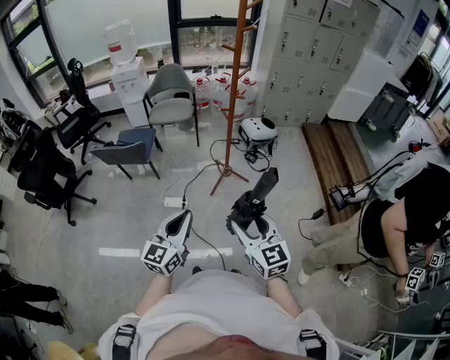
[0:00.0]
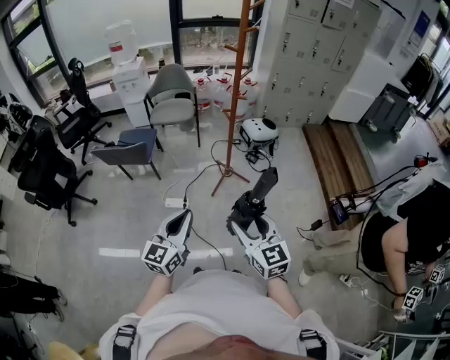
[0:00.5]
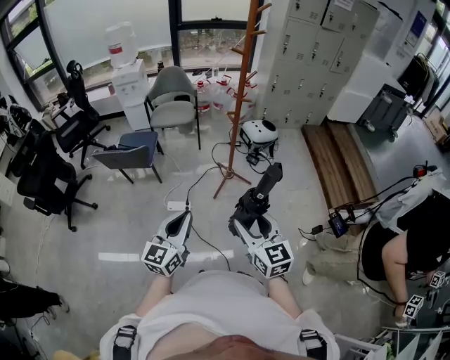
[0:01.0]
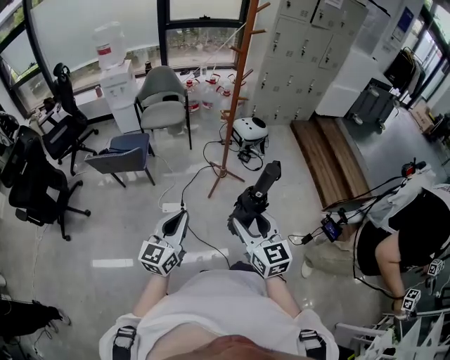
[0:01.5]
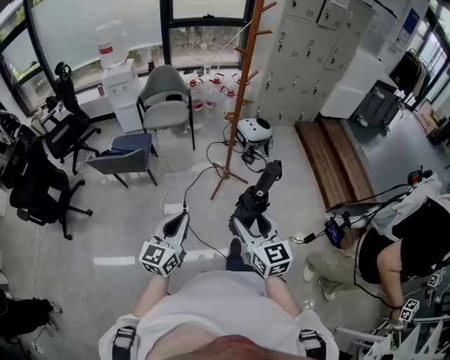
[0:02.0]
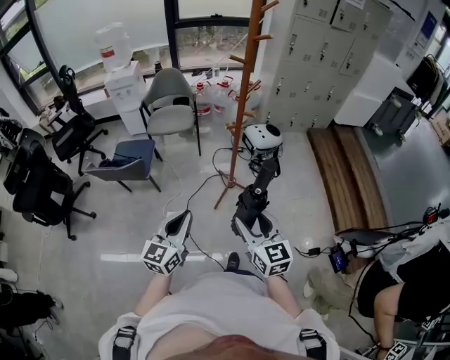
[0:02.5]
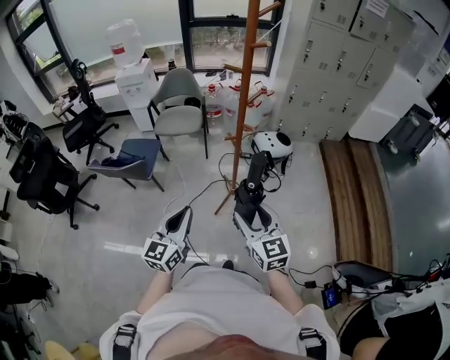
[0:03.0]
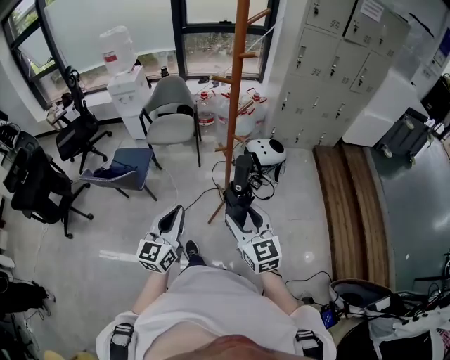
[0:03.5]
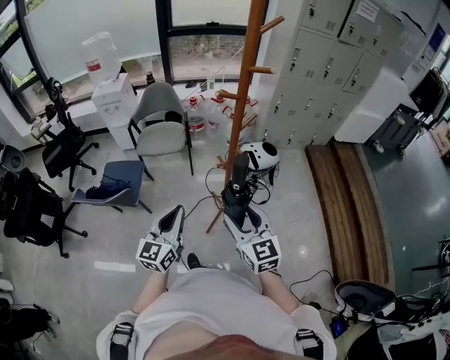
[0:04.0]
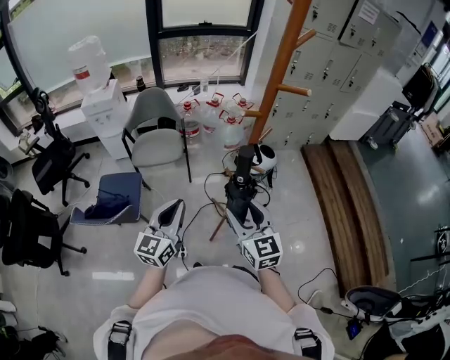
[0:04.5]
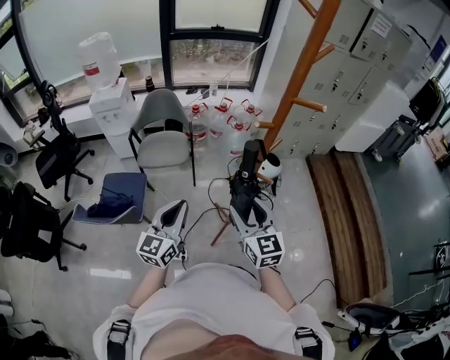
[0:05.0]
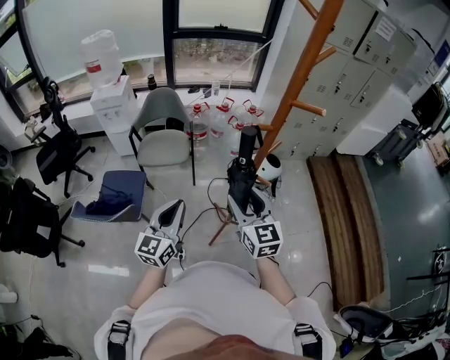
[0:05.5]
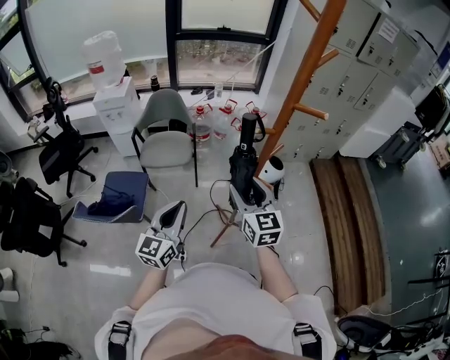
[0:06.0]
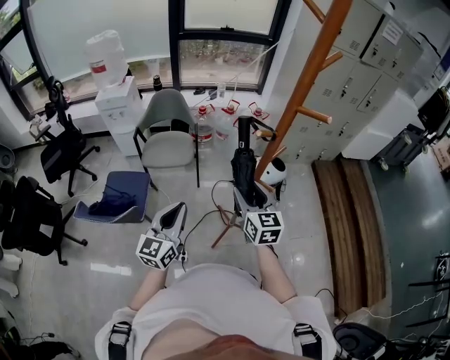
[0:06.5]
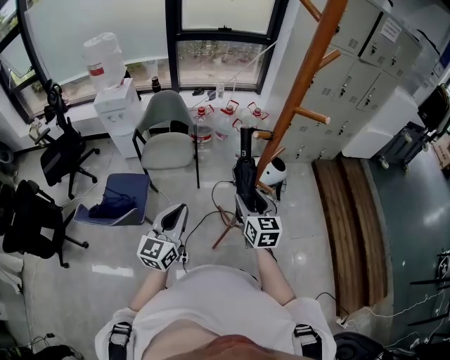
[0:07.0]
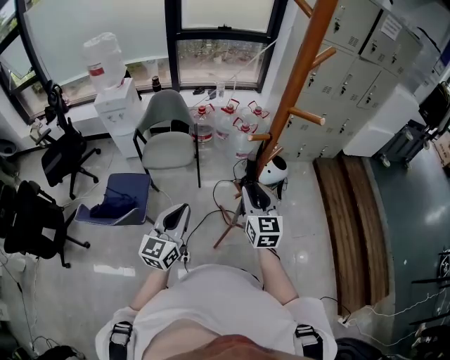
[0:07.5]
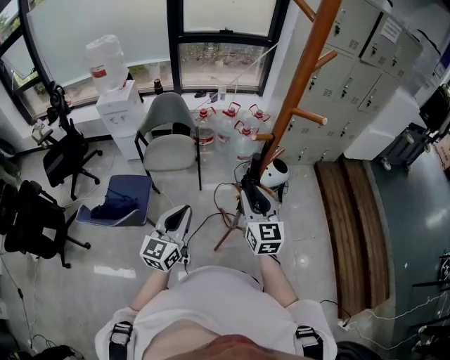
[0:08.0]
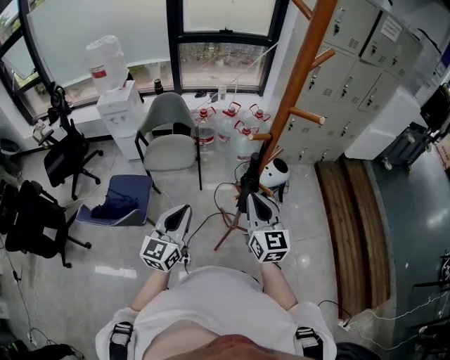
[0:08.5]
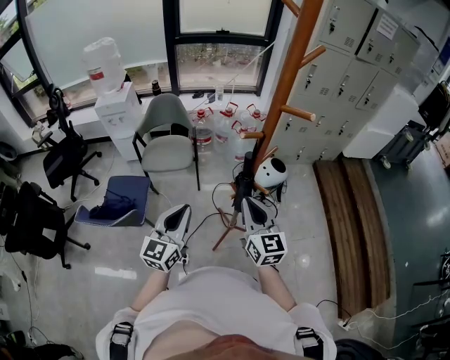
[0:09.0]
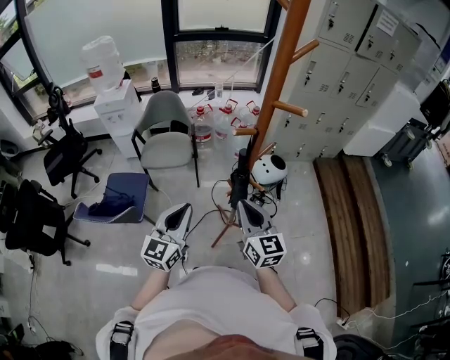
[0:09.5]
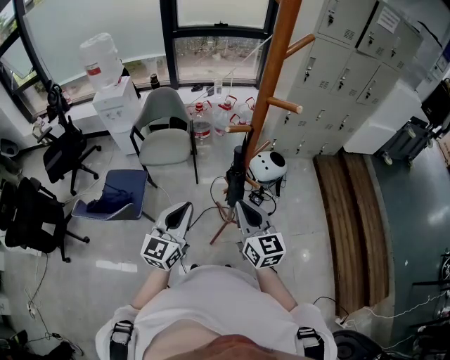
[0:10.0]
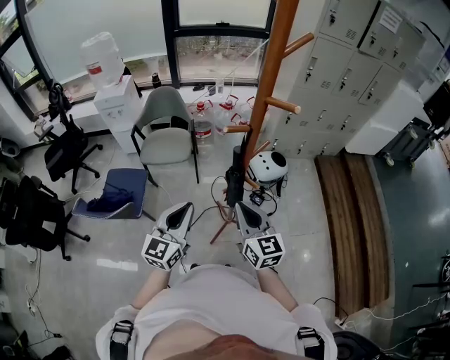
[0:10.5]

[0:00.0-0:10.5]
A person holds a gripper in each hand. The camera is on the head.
0:00.0 to 0:02.0: The grippers both shift to the left by approximately 10 cm.
0:02.0 to 0:04.0: Both grippers travel together forward, some 35 cm.
0:04.0 to 0:06.5: The left gripper travels forward and to the left by approximately 15 cm. Meanwhile the right gripper shifts some 20 cm forward.
0:06.5 to 0:08.5: The right gripper changes place by about 5 cm, and closes.
0:08.5 to 0:10.5: The left gripper is displaced to the right by about 5 cm.

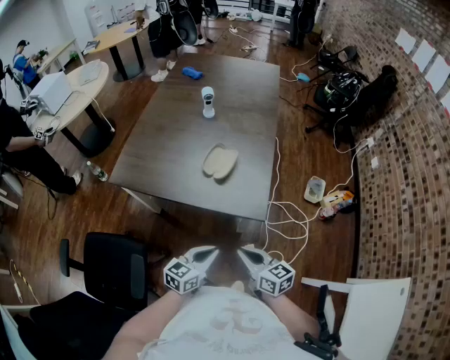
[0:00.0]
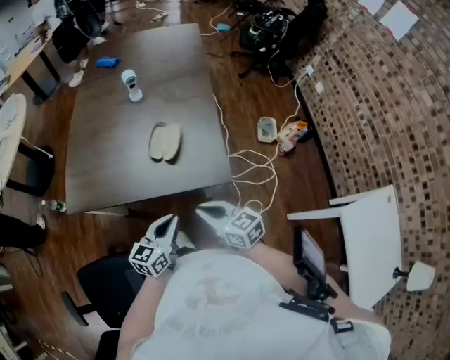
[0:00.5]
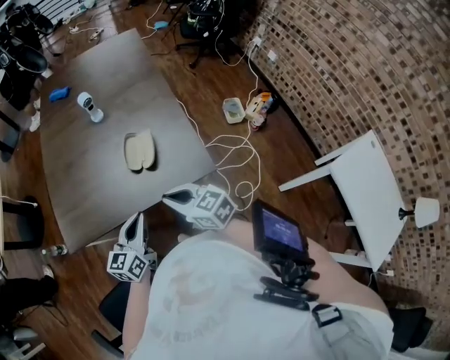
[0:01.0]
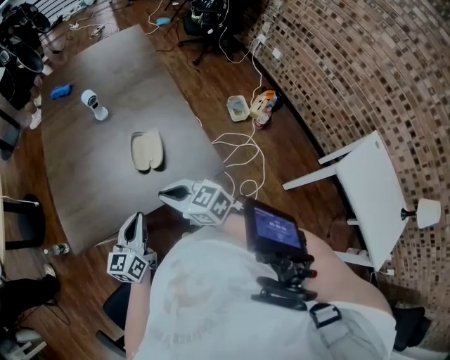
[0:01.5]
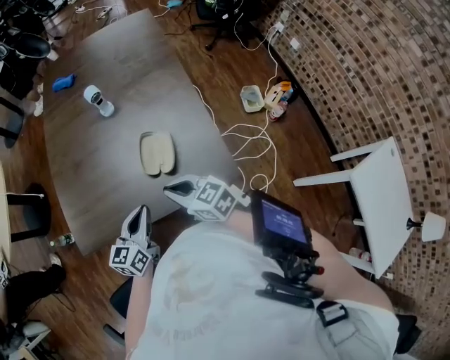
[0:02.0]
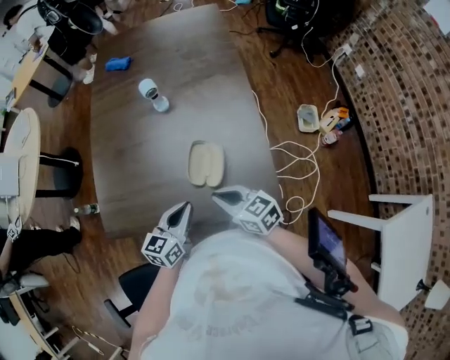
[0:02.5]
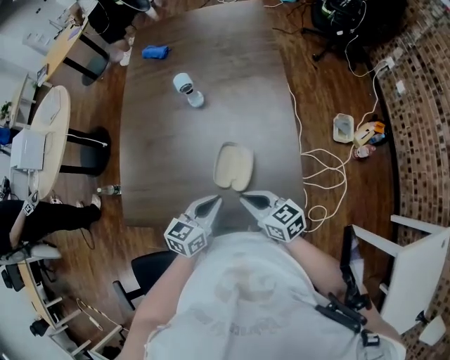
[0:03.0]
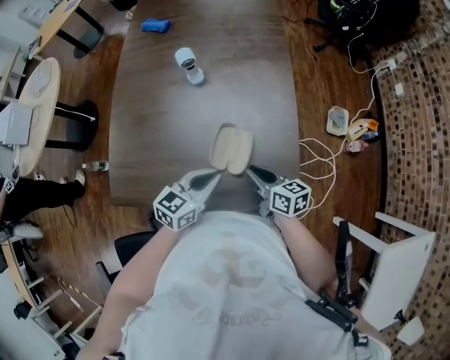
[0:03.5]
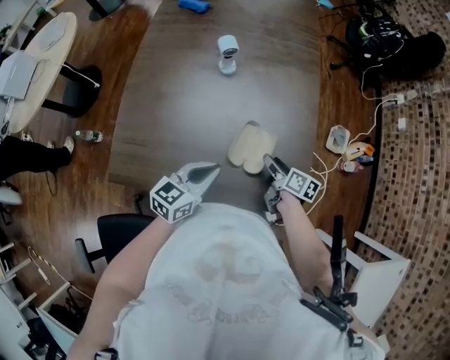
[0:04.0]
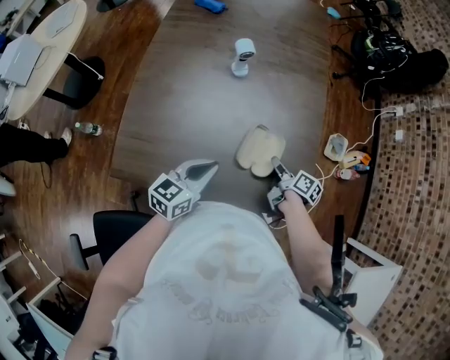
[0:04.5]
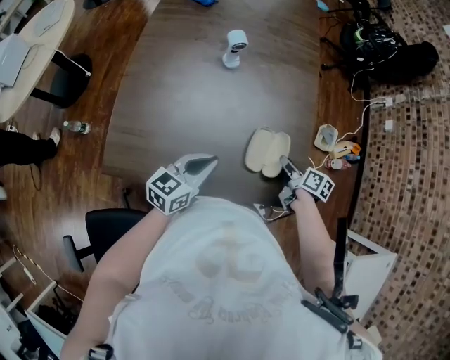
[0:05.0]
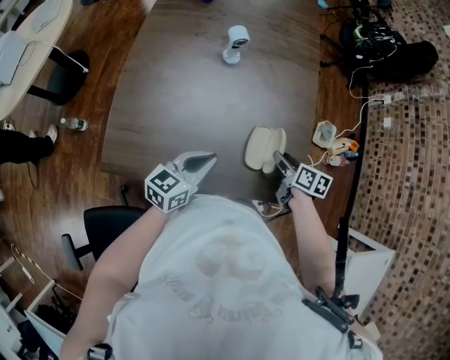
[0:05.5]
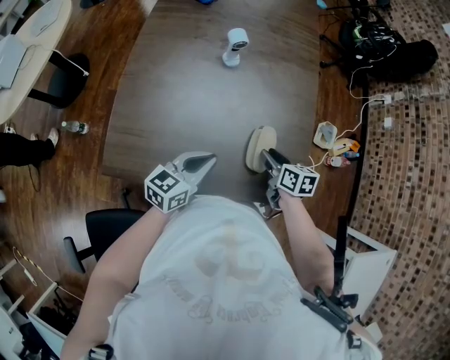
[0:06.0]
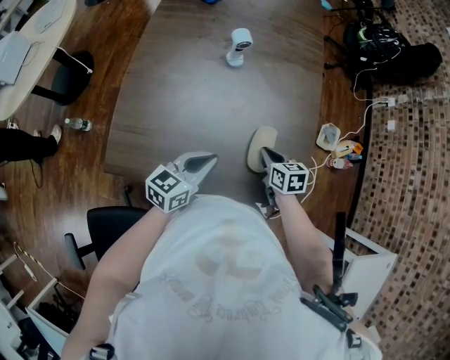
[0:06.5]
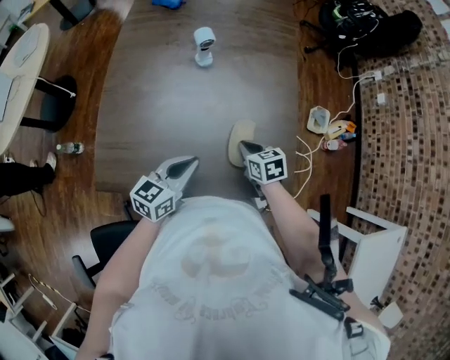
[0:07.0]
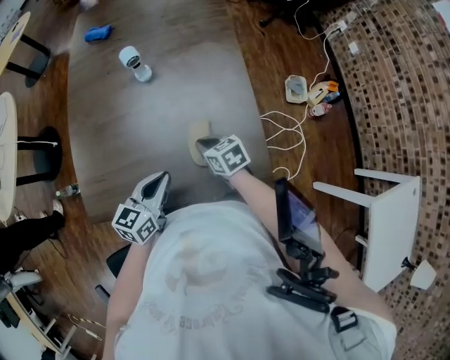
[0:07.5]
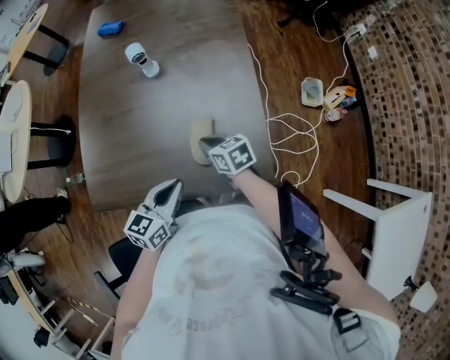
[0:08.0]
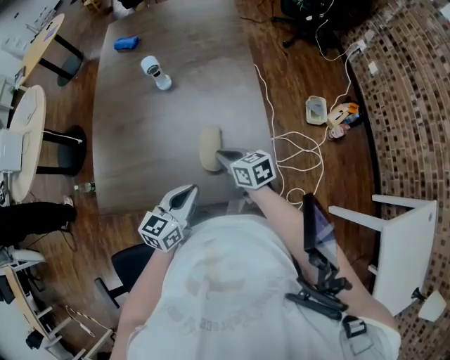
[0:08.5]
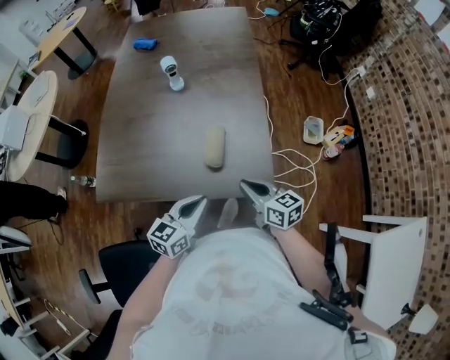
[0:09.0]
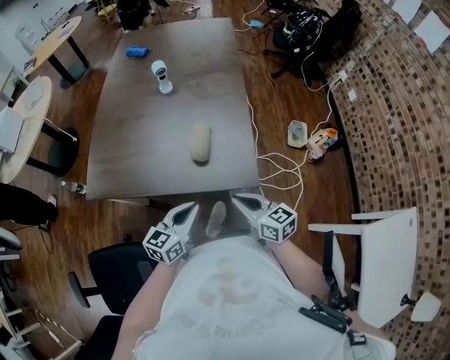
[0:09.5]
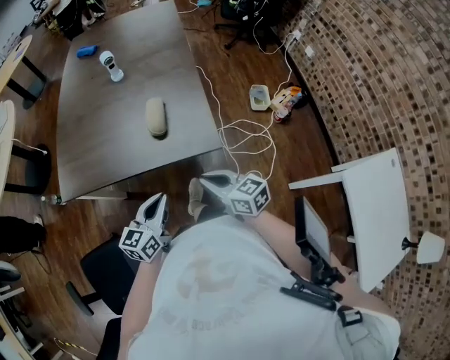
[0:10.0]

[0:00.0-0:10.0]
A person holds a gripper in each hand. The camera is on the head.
0:00.0 to 0:02.0: Both grippers move forward and to the left, some 25 cm.
0:02.0 to 0:04.0: The left gripper moves forward, approximately 10 cm. Meanwhile the right gripper travels downward, forward and to the right by some 20 cm, twists approximately 40 degrees clockwise, seen from behind, and opens.
0:04.0 to 0:06.0: The right gripper moves roughly 5 cm, swivels about 20 degrees, and closes up.
0:06.0 to 0:08.0: The right gripper closes up; the left gripper heads to the right and backward, covering some 10 cm.
0:08.0 to 0:10.0: The two grippers go approximately 25 cm backward.

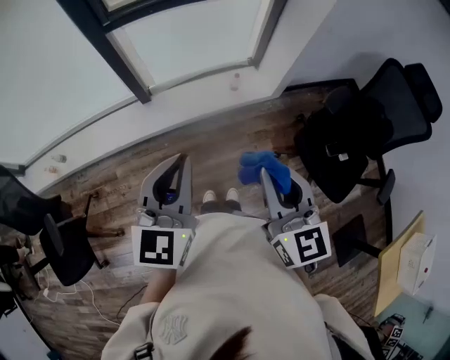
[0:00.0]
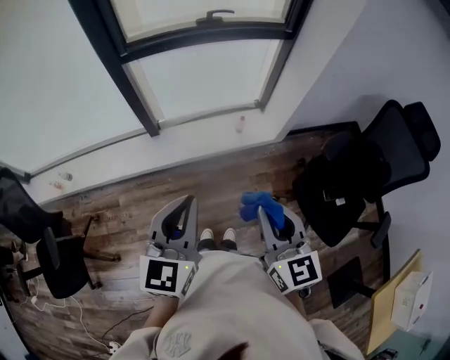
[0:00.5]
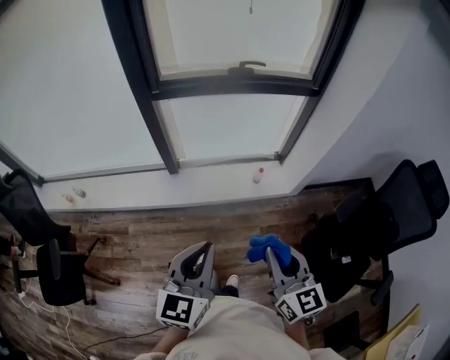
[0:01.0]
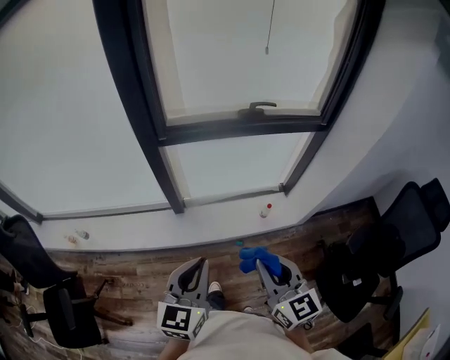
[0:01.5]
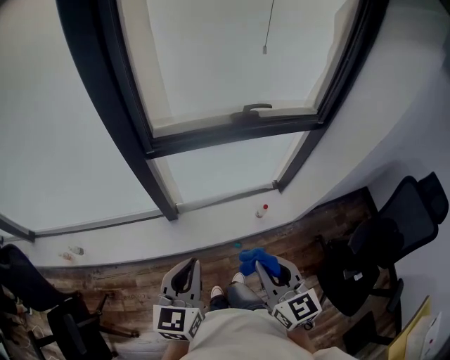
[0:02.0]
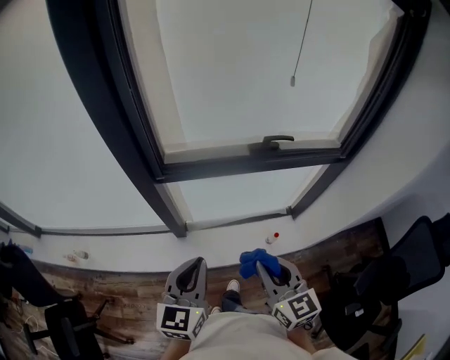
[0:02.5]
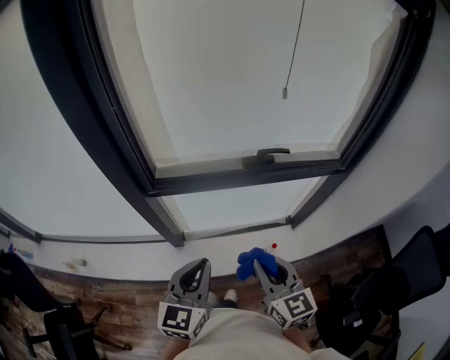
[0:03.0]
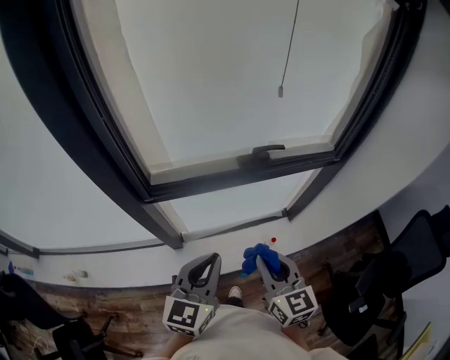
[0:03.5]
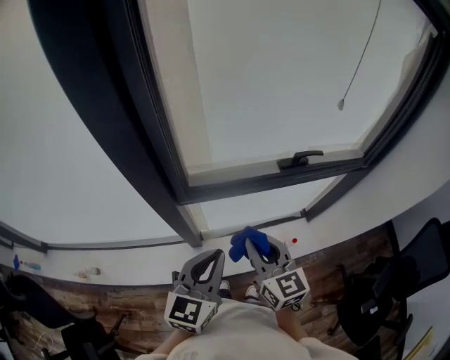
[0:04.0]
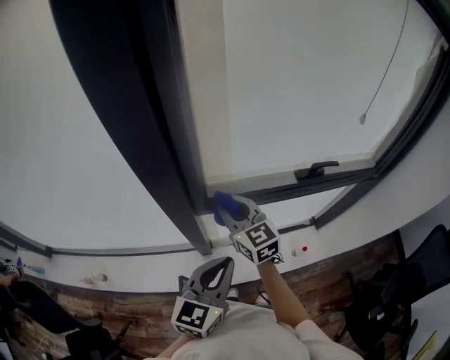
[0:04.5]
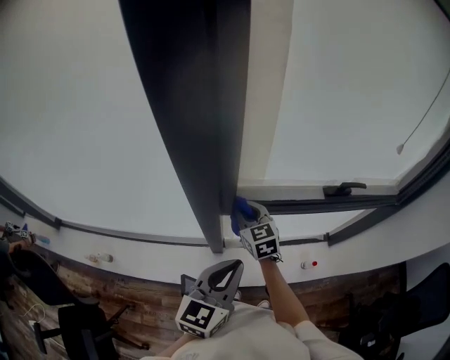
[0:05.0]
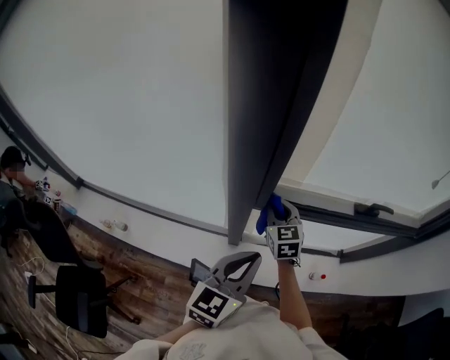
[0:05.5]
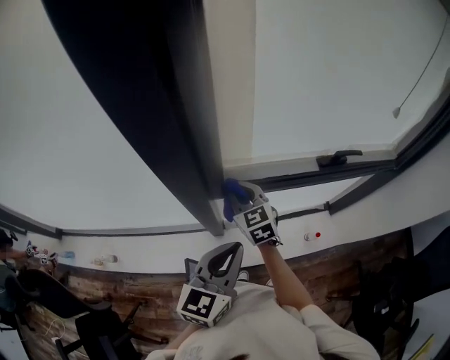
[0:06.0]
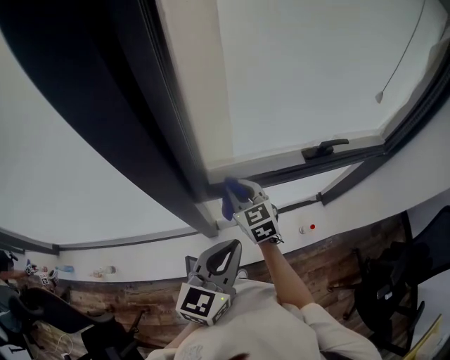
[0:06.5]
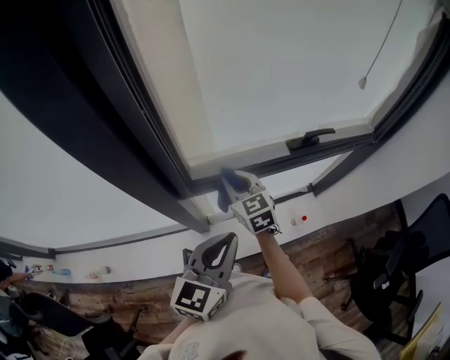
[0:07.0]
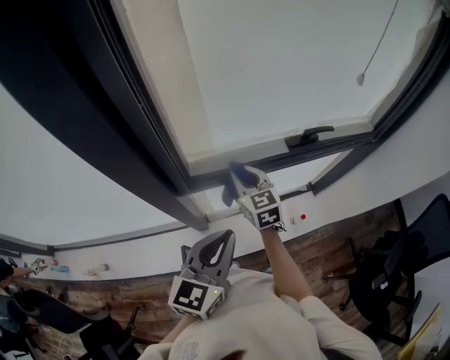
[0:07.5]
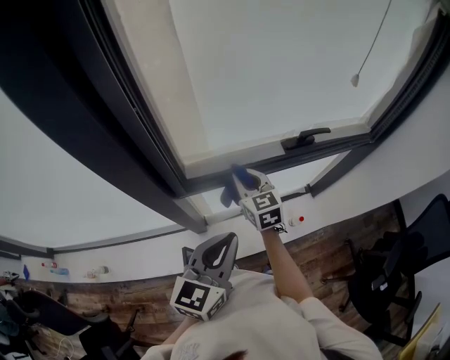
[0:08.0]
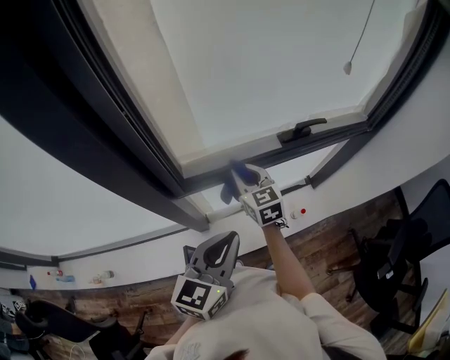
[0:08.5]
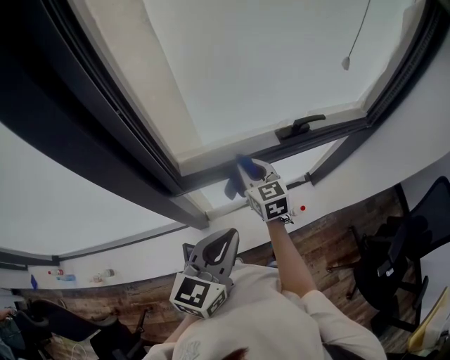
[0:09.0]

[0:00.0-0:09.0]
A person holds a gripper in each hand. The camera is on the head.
0:00.0 to 0:02.0: Both grippers move forward and to the left, approximately 25 cm.
0:02.0 to 0:04.5: The left gripper moves forward, roughly 25 cm, while the right gripper moves forward and to the left, some 50 cm.
0:04.5 to 0:07.0: The right gripper goes roughly 10 cm downward, to the right and forward.
0:07.0 to 0:09.0: The right gripper is displaced to the right by about 10 cm.
